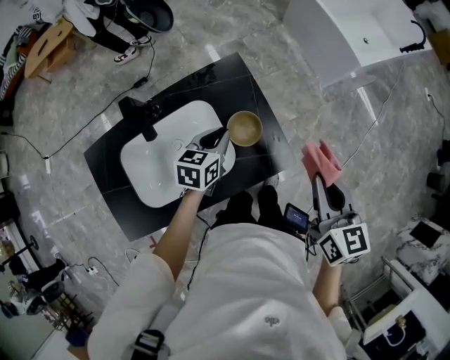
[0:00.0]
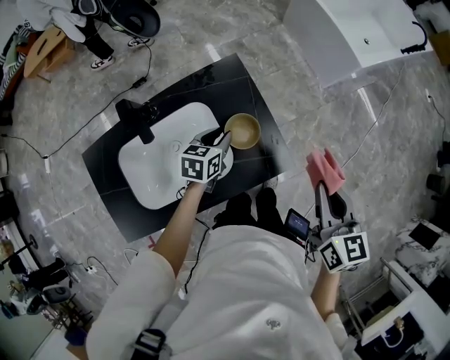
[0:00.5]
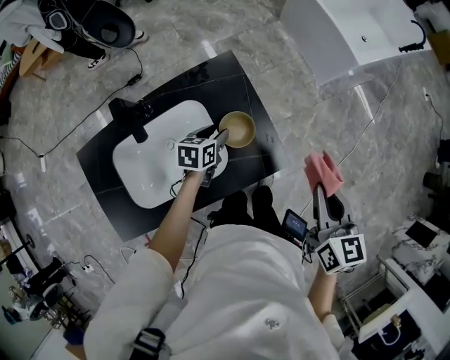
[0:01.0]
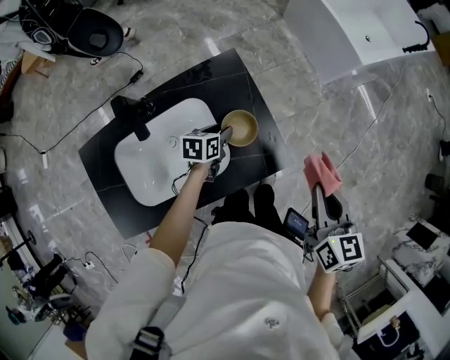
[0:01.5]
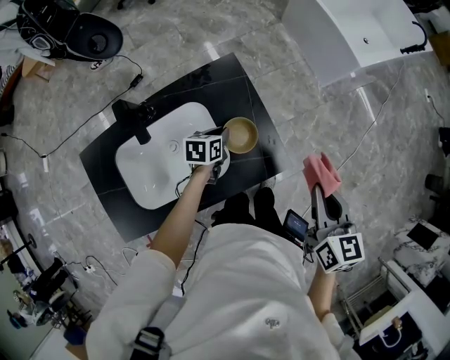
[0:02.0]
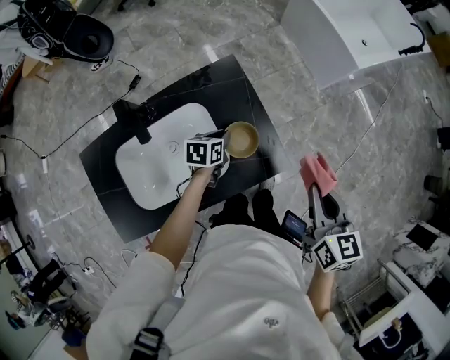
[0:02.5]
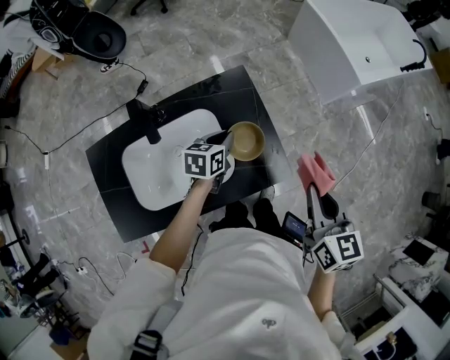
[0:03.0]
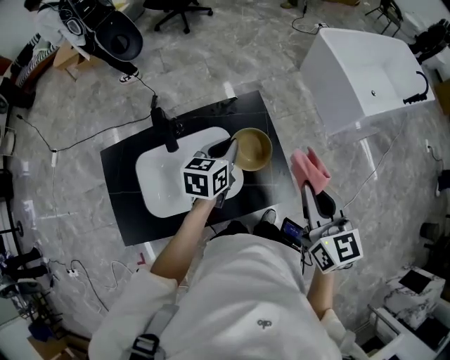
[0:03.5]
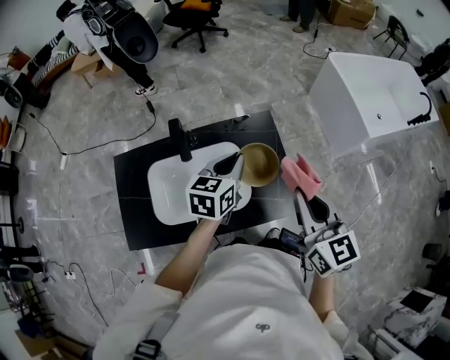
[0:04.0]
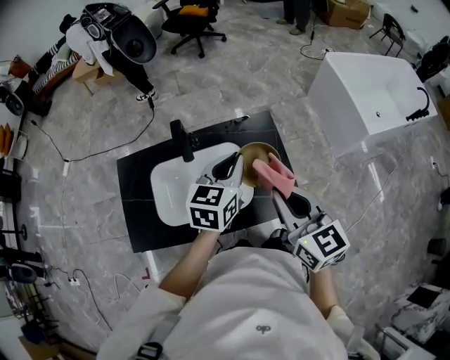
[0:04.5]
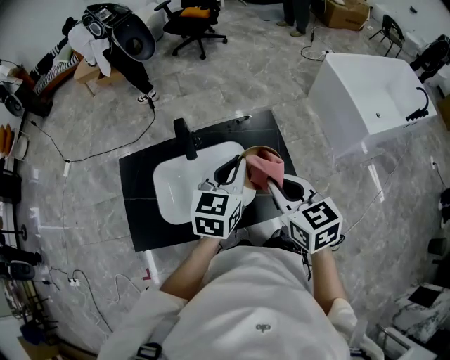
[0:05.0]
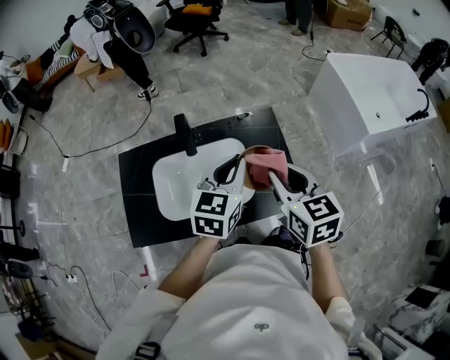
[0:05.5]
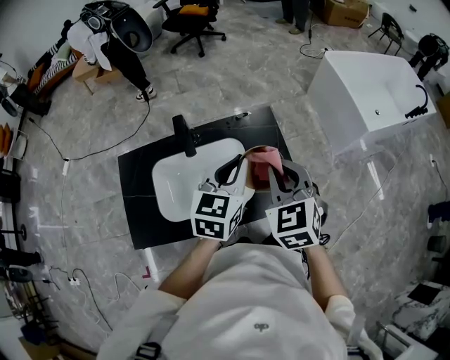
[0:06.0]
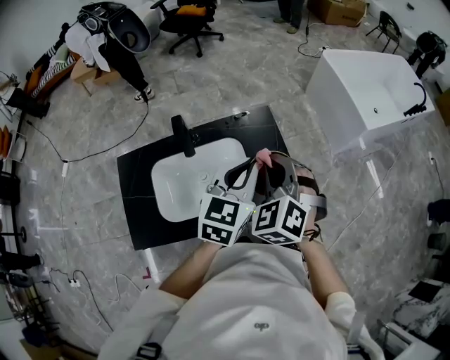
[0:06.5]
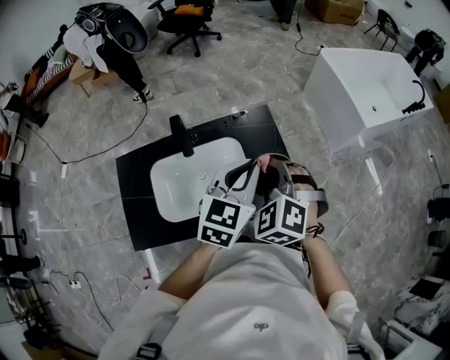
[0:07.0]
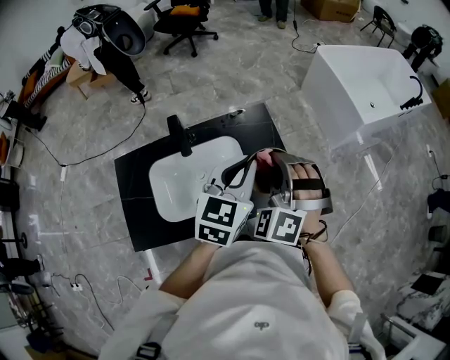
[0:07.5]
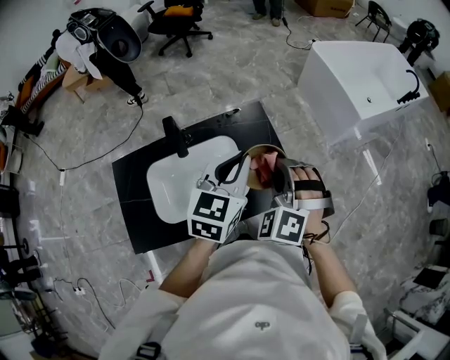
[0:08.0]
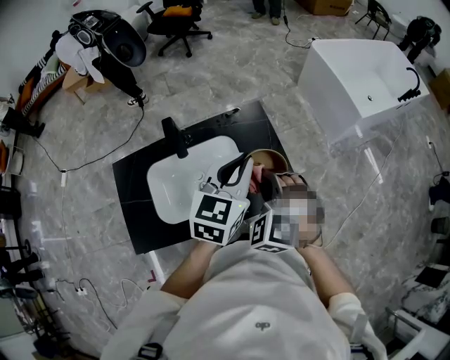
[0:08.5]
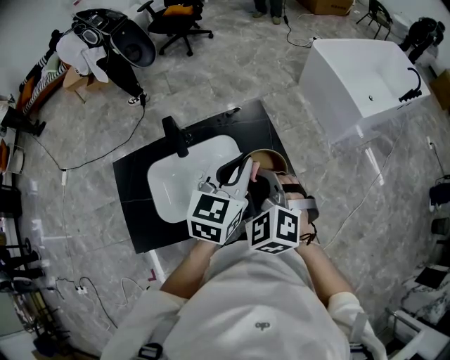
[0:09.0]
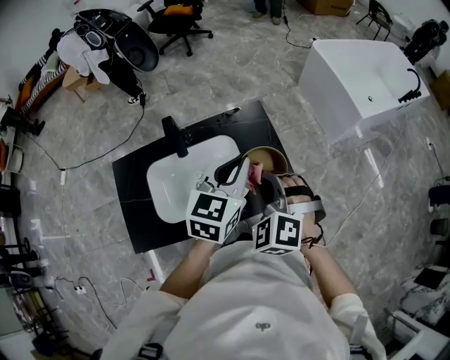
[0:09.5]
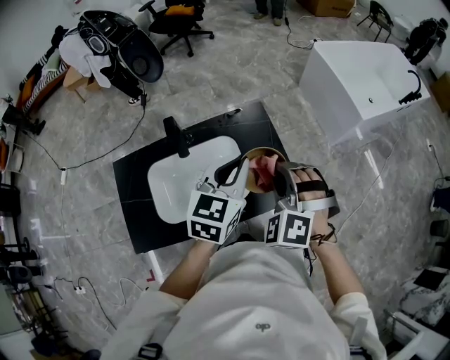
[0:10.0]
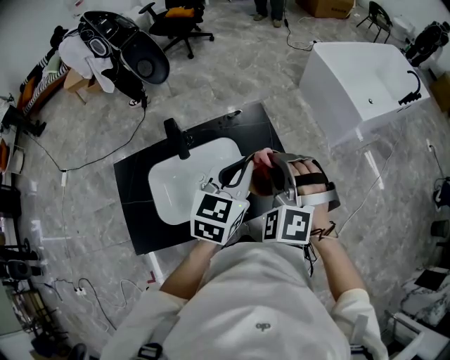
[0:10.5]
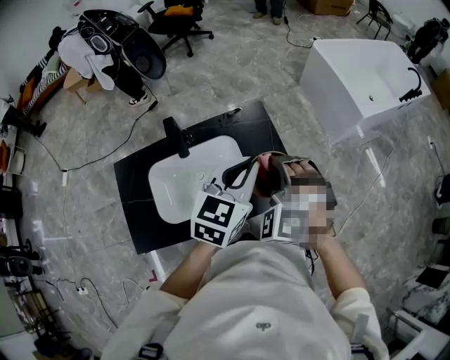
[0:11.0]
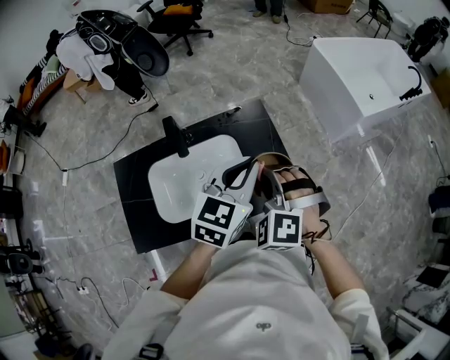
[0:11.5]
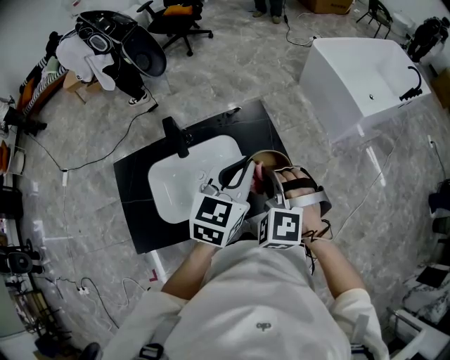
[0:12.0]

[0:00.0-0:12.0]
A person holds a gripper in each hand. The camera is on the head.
0:00.0 to 0:02.0: The left gripper goes approximately 10 cm downward, and opens, then closes once more.
0:02.0 to 0:04.0: The right gripper moves to the left and upward, approximately 15 cm, and changes its angle by some 30 degrees. Meanwhile the left gripper moves upward, some 25 cm, and changes its angle by some 30 degrees.
0:04.0 to 0:06.0: The right gripper travels to the left by about 5 cm, and swivels some 40 degrees. Meanwhile the left gripper travels upward and backward by approximately 10 cm.
0:06.0 to 0:08.0: The right gripper swivels some 40 degrees.
0:10.0 to 0:12.0: There are only small adjustments of the grippers.

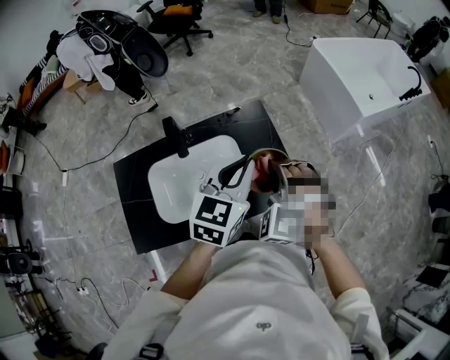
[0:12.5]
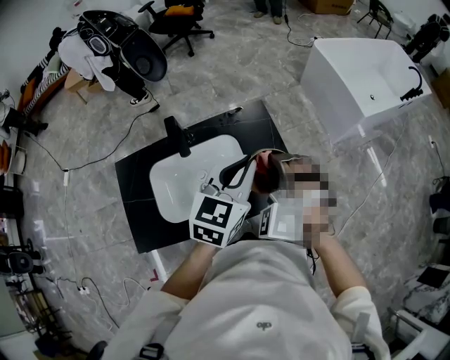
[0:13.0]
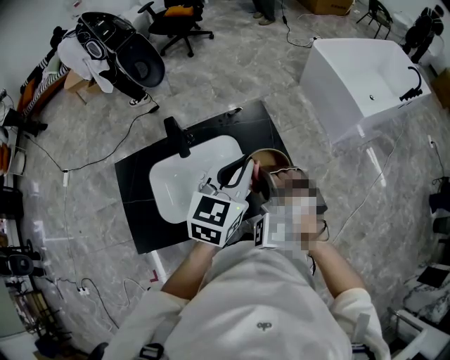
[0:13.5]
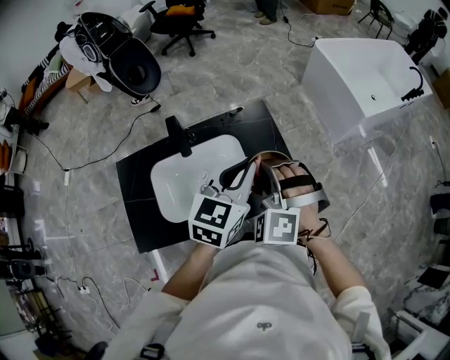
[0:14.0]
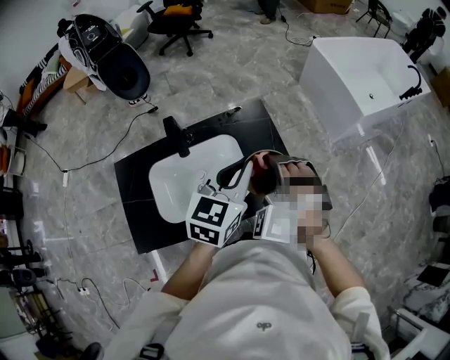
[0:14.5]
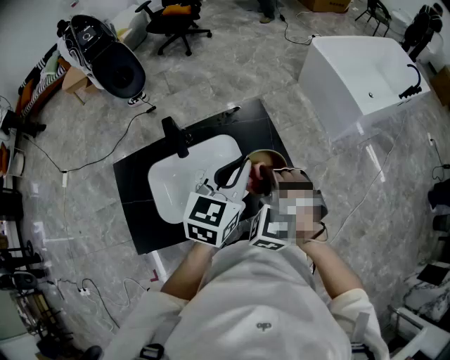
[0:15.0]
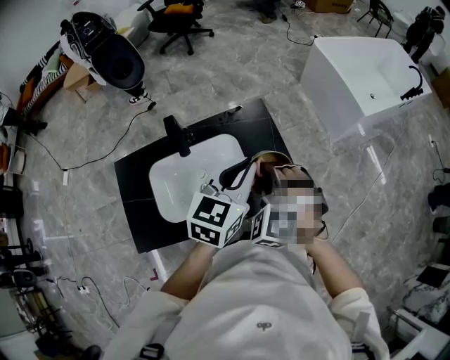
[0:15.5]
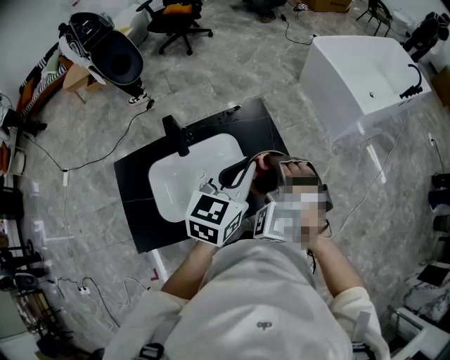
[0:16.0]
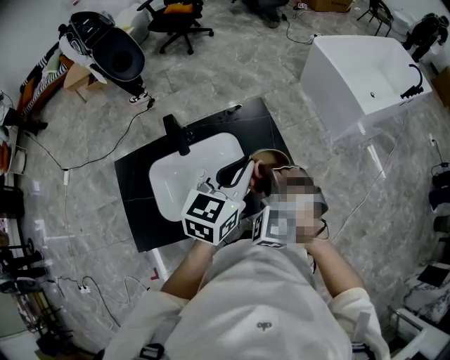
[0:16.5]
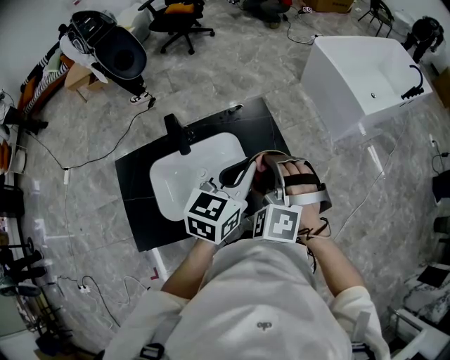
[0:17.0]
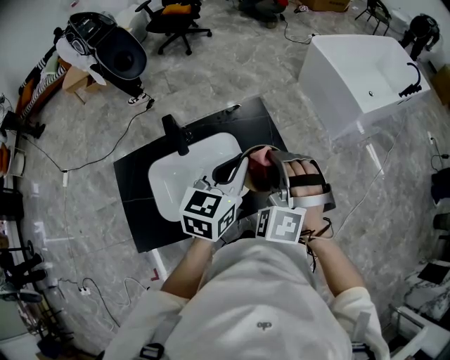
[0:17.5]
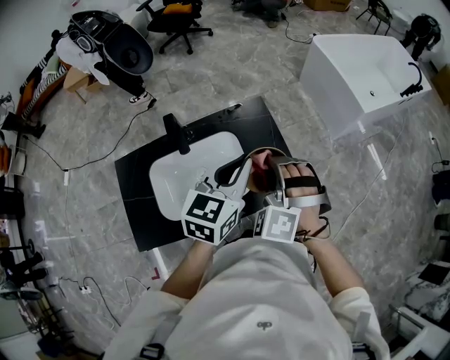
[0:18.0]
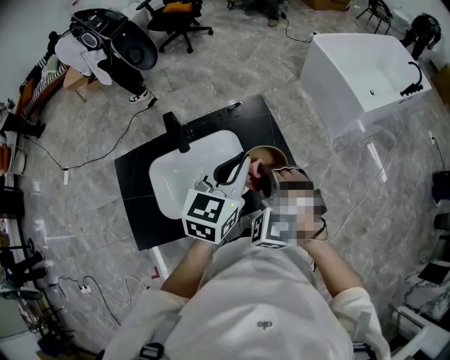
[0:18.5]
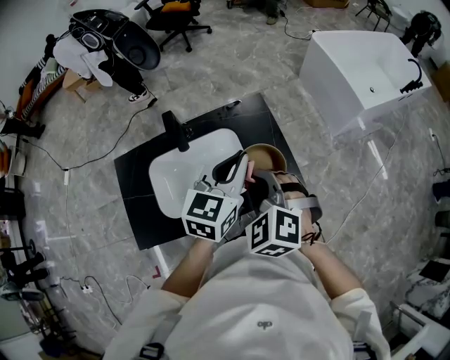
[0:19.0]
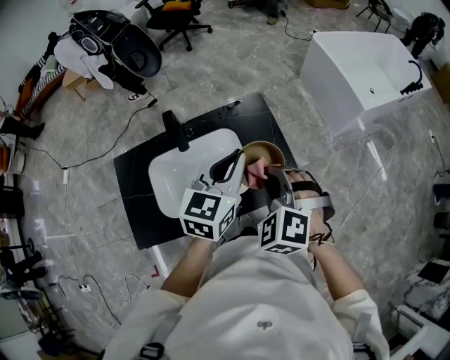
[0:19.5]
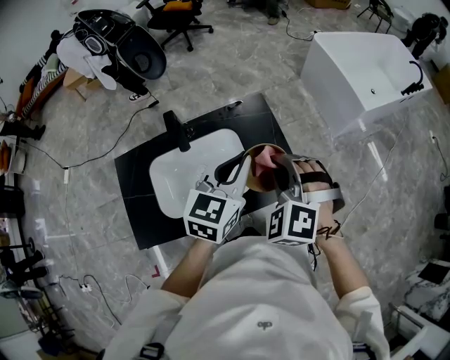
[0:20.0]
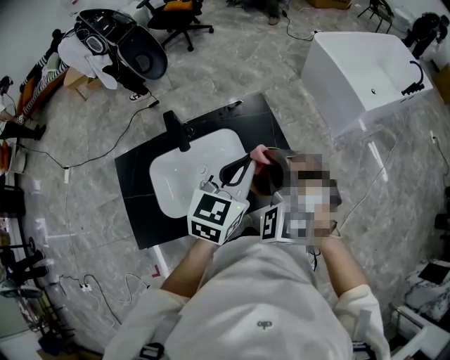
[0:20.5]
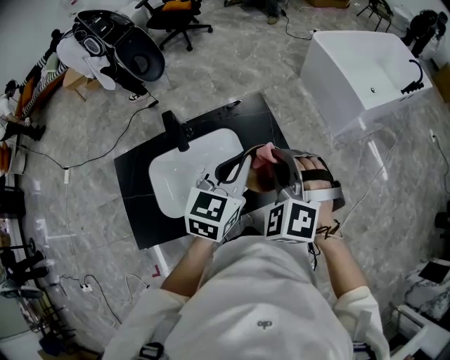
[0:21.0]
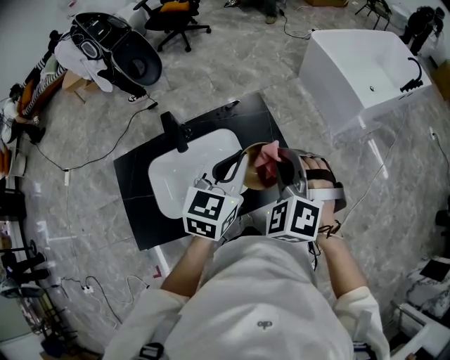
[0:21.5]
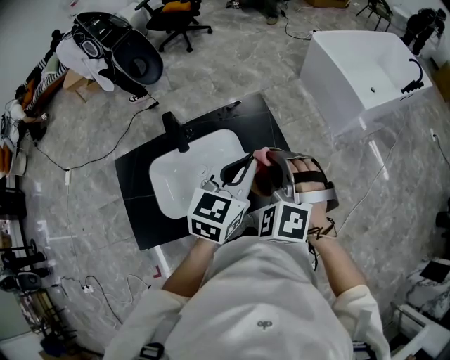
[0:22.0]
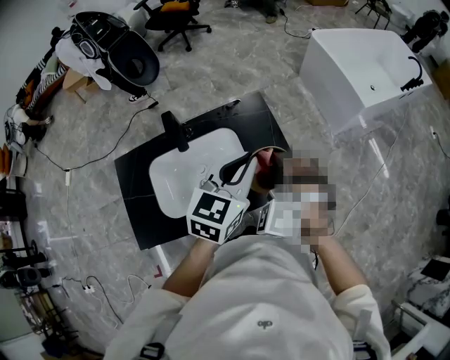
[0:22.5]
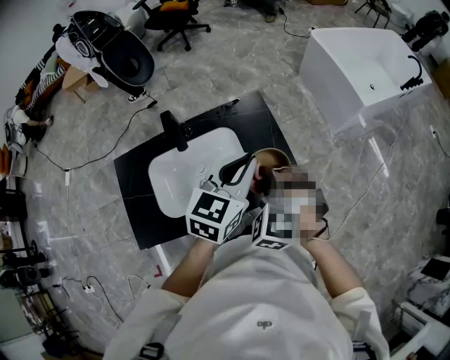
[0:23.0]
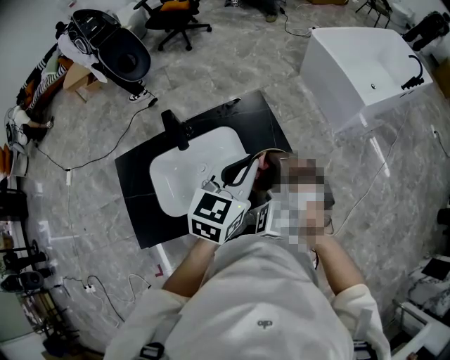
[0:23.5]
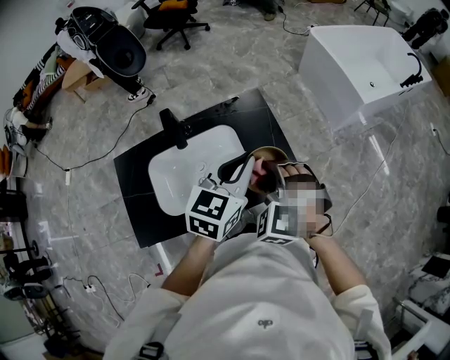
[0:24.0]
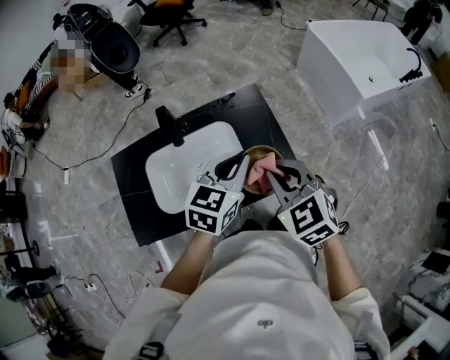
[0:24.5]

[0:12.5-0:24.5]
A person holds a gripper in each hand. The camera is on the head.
0:12.5 to 0:18.5: There are only small adjustments of the grippers.
0:18.5 to 0:20.5: The right gripper goes about 5 cm upward.
0:20.5 to 0:22.5: The right gripper shifts by approximately 5 cm.
0:22.5 to 0:24.5: The right gripper rolls clockwise, seen from behind, by approximately 40 degrees.

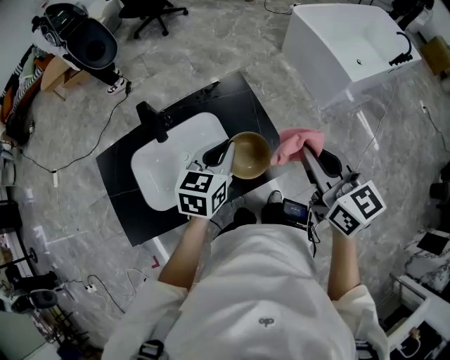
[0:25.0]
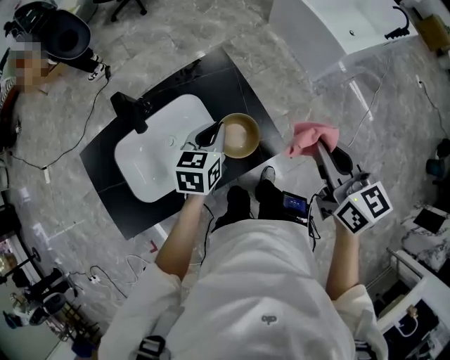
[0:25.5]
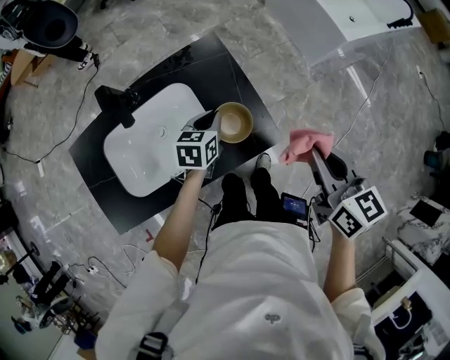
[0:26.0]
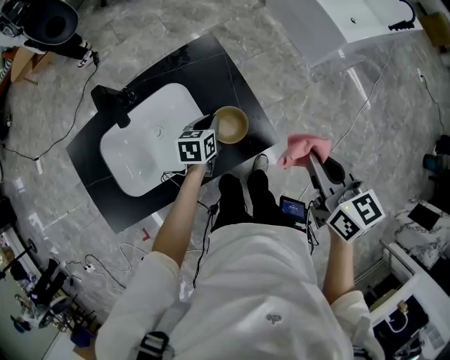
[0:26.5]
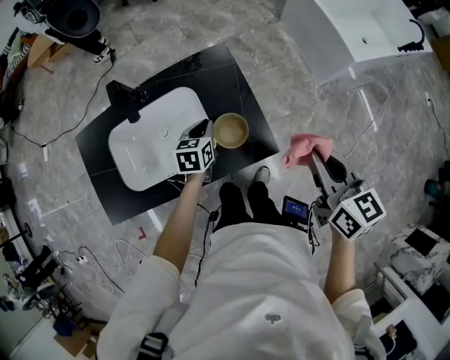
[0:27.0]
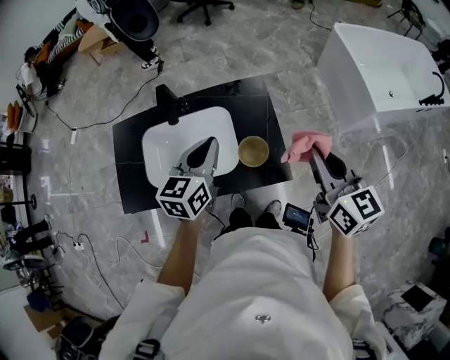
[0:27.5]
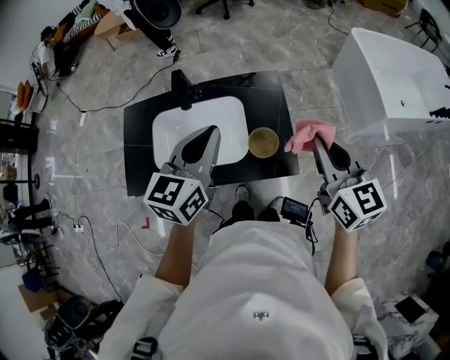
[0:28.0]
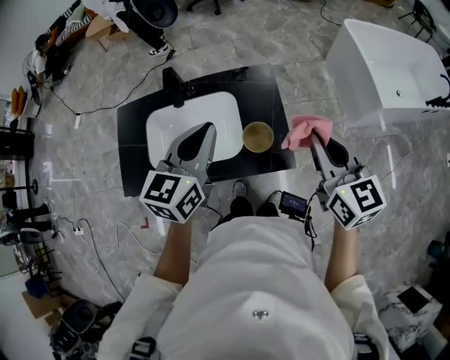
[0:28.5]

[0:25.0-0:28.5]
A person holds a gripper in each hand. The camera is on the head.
0:25.0 to 0:27.0: The left gripper moves downward, approximately 20 cm, and swivels approximately 20 degrees; the right gripper heads to the right and downward, covering about 15 cm.
0:27.0 to 0:28.5: The left gripper moves upward, approximately 30 cm, and turns by about 30 degrees. Meanwhile the right gripper goes about 10 cm upward and to the left, and turns by approximately 20 degrees.
